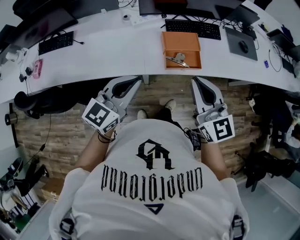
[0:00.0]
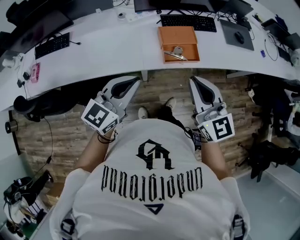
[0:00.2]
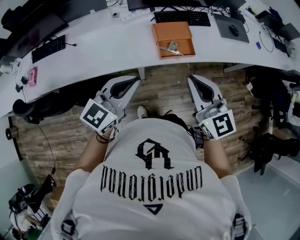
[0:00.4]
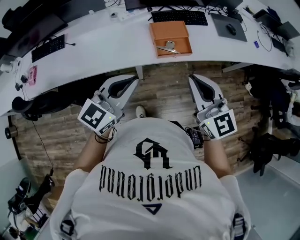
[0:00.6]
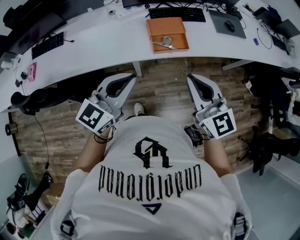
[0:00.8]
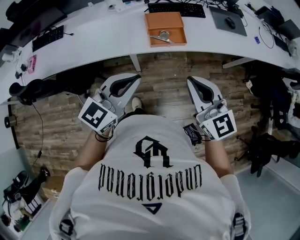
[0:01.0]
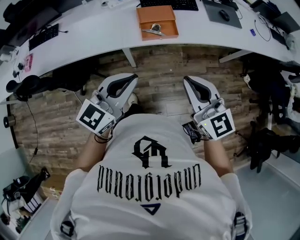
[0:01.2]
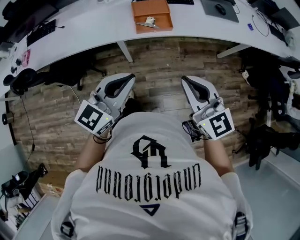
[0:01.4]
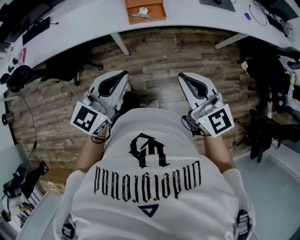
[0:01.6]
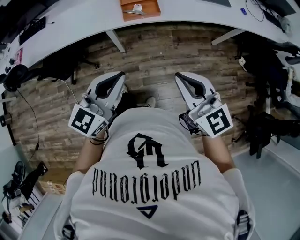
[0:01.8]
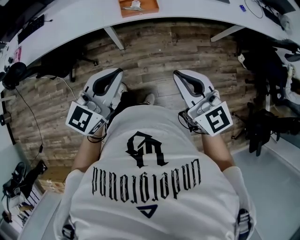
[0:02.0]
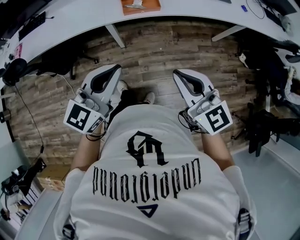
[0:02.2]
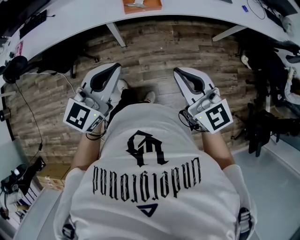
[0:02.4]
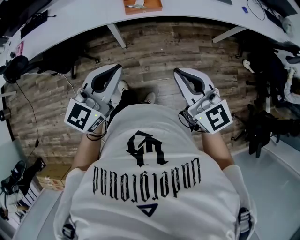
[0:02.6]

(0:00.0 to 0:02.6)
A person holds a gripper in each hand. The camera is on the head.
0:00.0 - 0:01.2: The two grippers go roughly 20 cm backward and to the right.
0:01.2 - 0:02.6: The right gripper goes some 15 cm backward and to the right. Meanwhile the left gripper travels backward by roughly 10 cm.

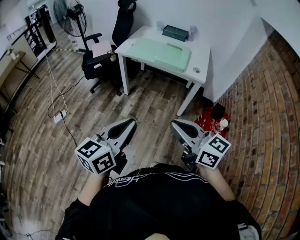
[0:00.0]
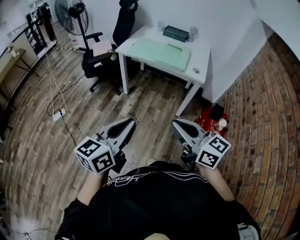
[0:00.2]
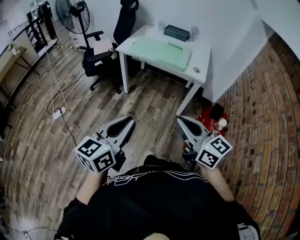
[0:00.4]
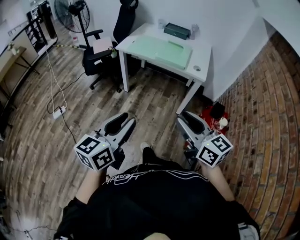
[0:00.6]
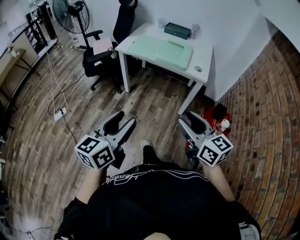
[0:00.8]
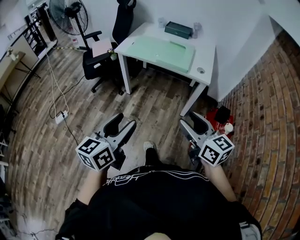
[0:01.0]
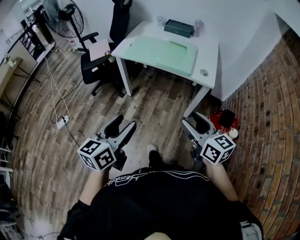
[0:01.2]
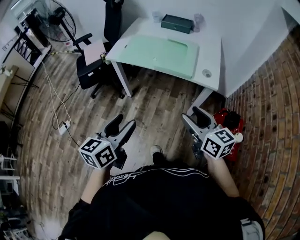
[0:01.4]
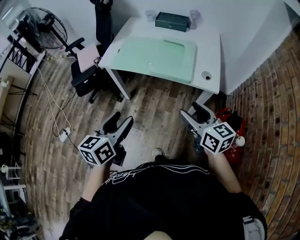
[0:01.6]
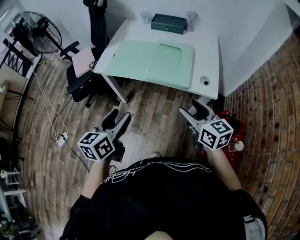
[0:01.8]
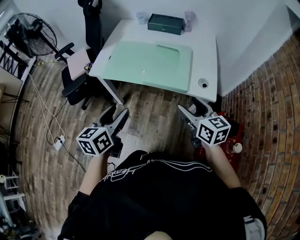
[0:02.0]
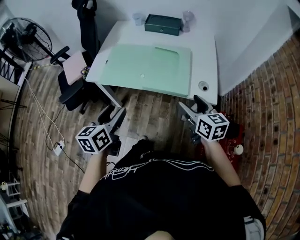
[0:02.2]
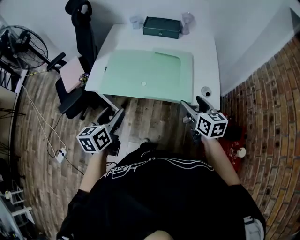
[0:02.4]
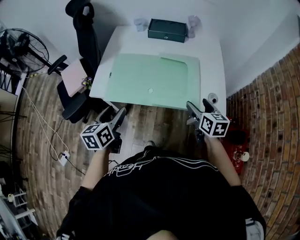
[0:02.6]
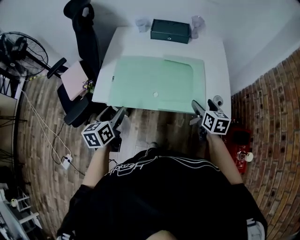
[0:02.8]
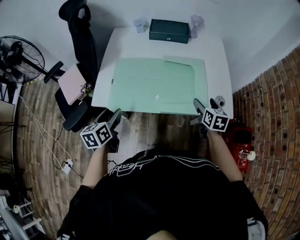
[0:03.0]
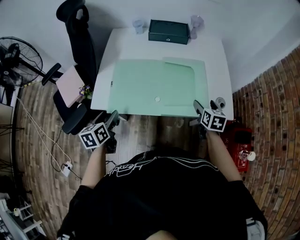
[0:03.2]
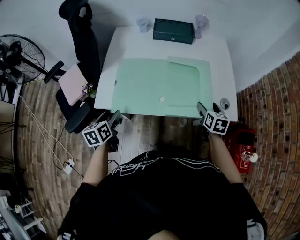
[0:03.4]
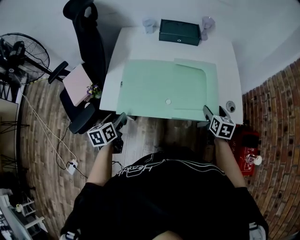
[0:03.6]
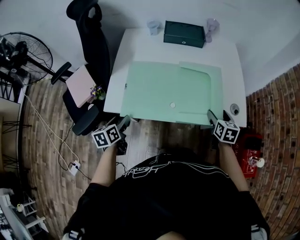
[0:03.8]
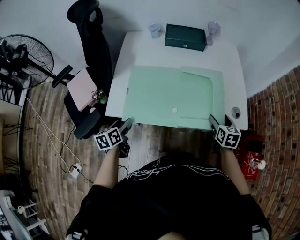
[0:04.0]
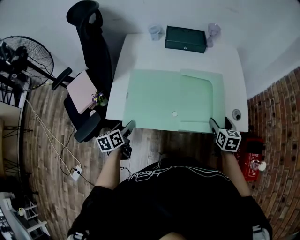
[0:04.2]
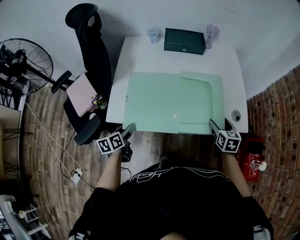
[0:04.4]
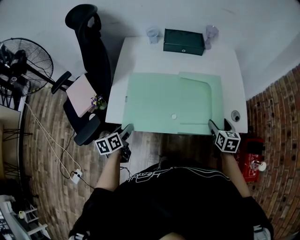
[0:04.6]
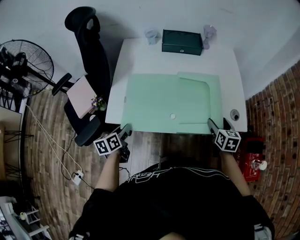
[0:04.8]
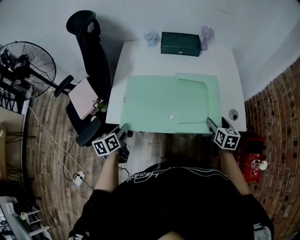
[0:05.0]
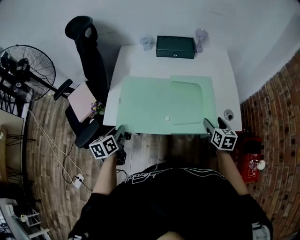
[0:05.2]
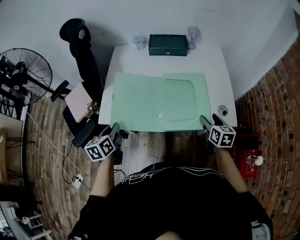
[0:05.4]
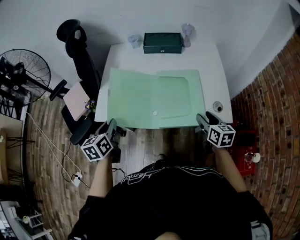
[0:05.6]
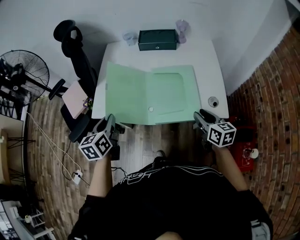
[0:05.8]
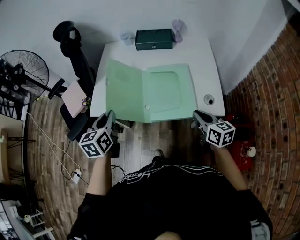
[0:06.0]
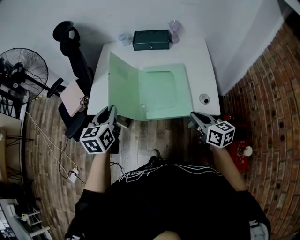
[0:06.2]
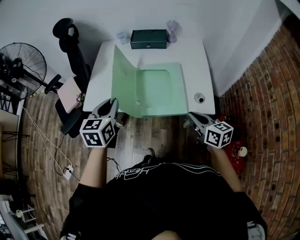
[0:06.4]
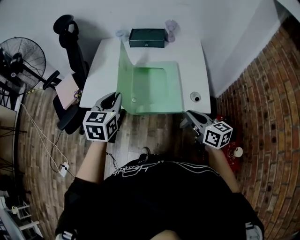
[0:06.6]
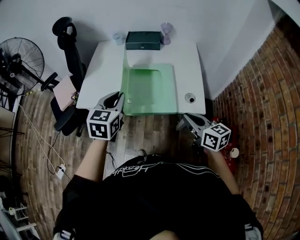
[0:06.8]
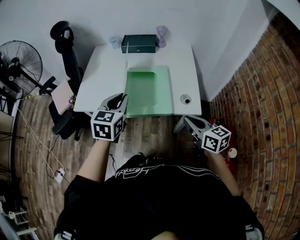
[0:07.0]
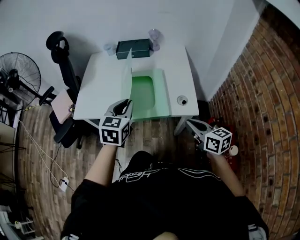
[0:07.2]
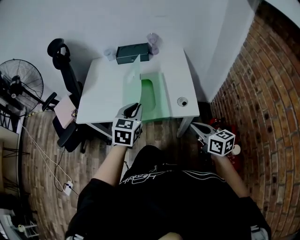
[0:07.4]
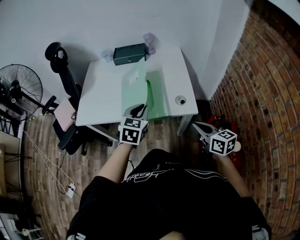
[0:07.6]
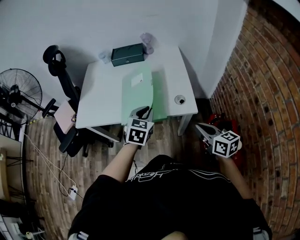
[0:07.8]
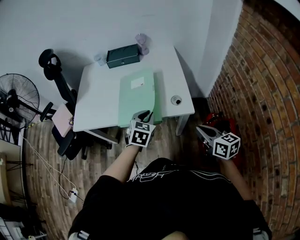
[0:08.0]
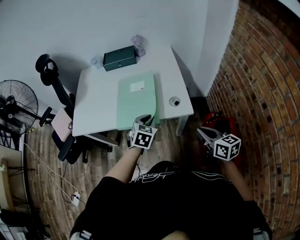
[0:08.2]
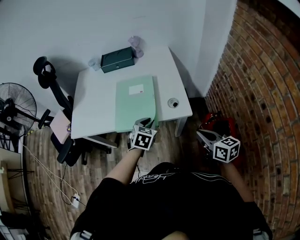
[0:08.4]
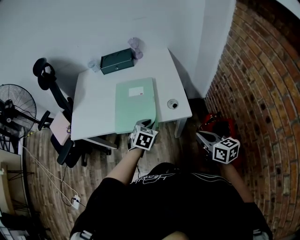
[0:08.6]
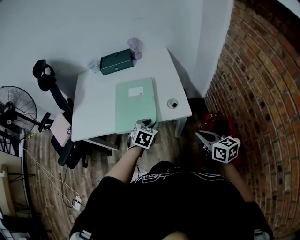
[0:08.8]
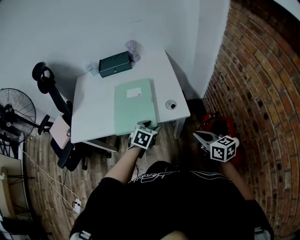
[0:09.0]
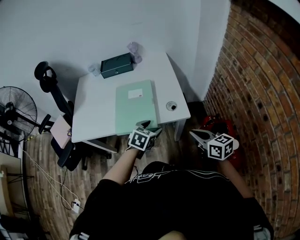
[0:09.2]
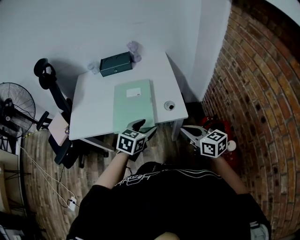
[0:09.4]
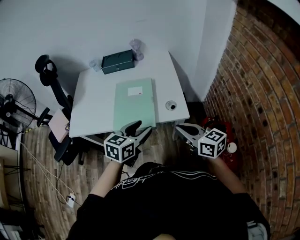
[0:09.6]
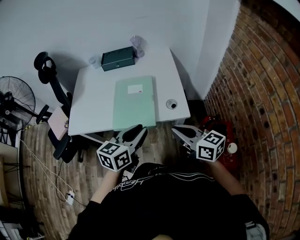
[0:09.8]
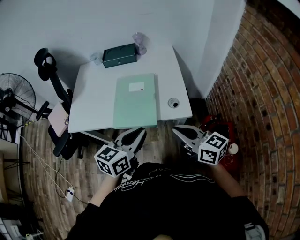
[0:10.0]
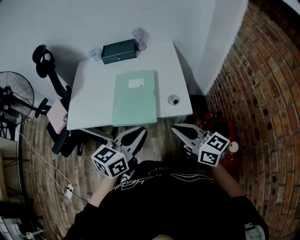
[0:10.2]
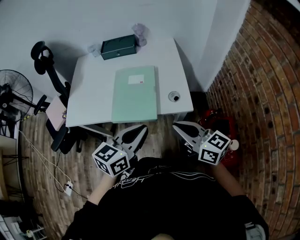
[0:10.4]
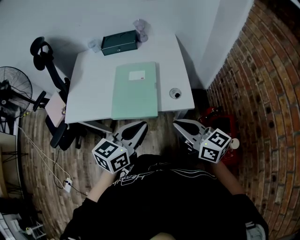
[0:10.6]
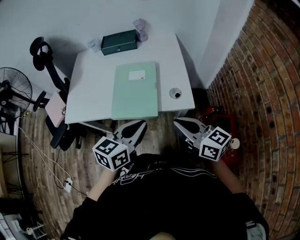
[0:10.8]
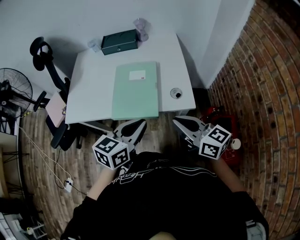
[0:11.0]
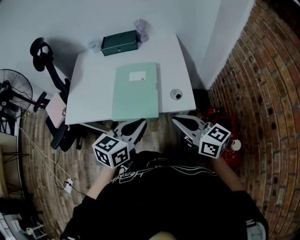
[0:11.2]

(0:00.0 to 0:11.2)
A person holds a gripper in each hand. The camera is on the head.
0:00.0 - 0:01.6: The two grippers go about 30 cm forward. The left gripper opens its fingers; the right gripper changes its angle by some 20 degrees, and opens its fingers.
0:01.6 - 0:03.2: The right gripper is displaced forward and downward by roughly 30 cm, and rotates approximately 40 degrees, while the left gripper travels forward, to the left and downward by roughly 40 cm.
0:03.2 - 0:04.8: The left gripper goes approximately 5 cm downward, and closes up.
0:04.8 - 0:06.4: The left gripper is displaced upward and to the right by about 30 cm, and rotates some 40 degrees. The right gripper heads upward and backward, covering some 15 cm, swivels roughly 30 degrees, and closes up.
0:06.4 - 0:08.0: The left gripper goes some 25 cm to the right and downward, and swivels roughly 30 degrees. Meanwhile the right gripper moves to the right and backward, approximately 15 cm.
0:08.0 - 0:09.6: The right gripper heads to the left, covering approximately 5 cm, while the left gripper is displaced upward and backward by approximately 5 cm, turns by some 30 degrees, and opens up.
0:09.6 - 0:11.2: The left gripper closes up.

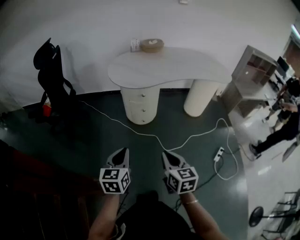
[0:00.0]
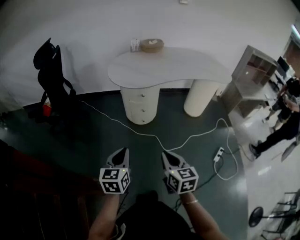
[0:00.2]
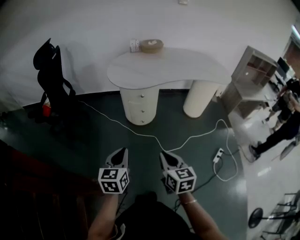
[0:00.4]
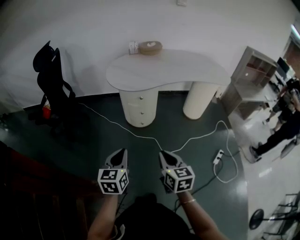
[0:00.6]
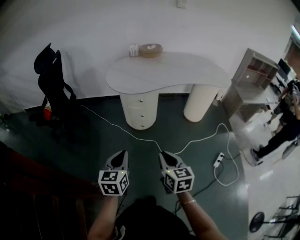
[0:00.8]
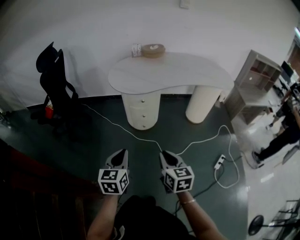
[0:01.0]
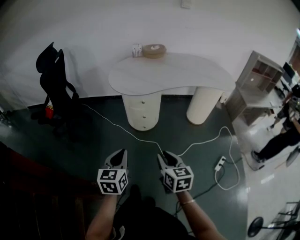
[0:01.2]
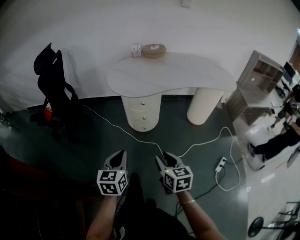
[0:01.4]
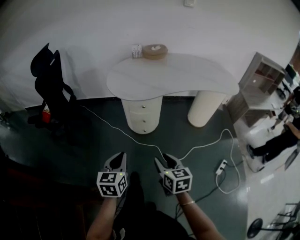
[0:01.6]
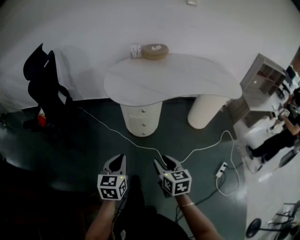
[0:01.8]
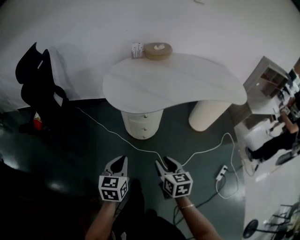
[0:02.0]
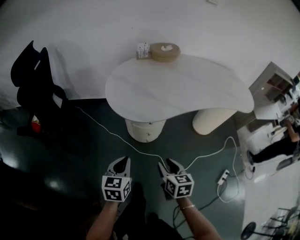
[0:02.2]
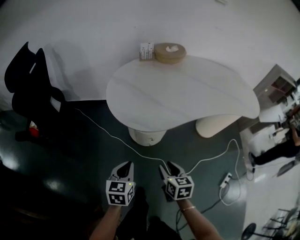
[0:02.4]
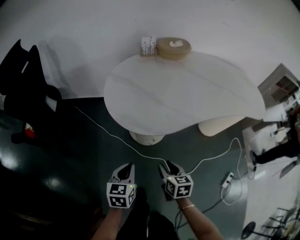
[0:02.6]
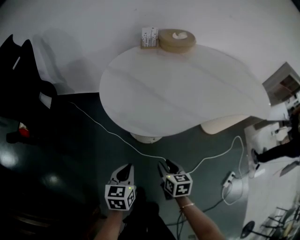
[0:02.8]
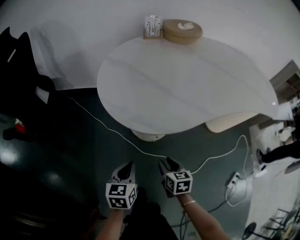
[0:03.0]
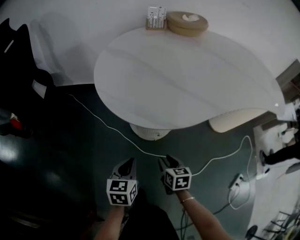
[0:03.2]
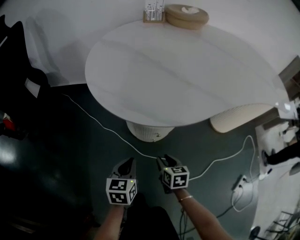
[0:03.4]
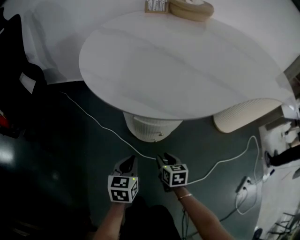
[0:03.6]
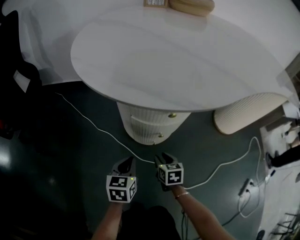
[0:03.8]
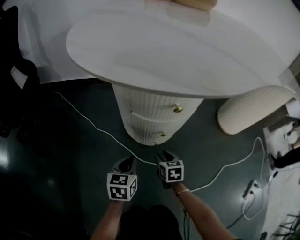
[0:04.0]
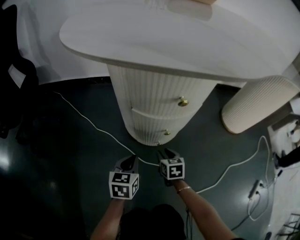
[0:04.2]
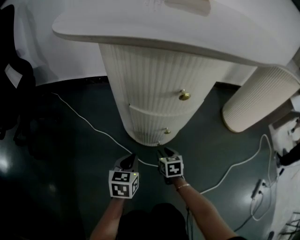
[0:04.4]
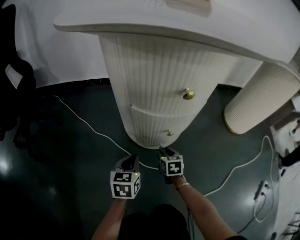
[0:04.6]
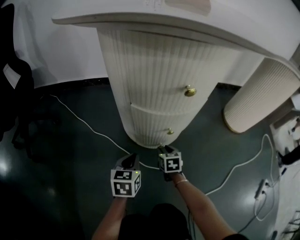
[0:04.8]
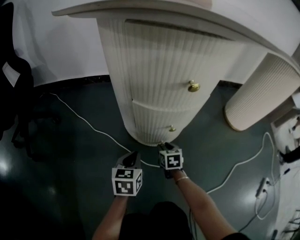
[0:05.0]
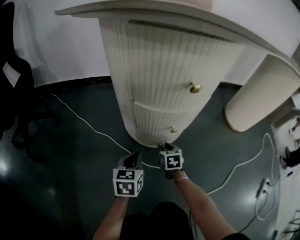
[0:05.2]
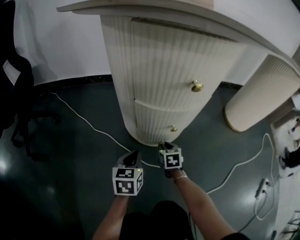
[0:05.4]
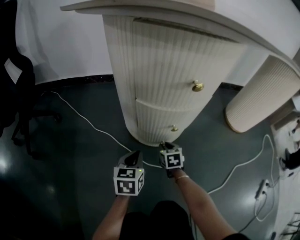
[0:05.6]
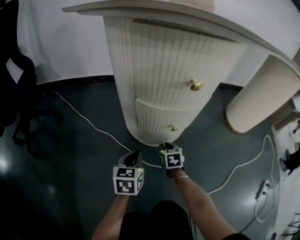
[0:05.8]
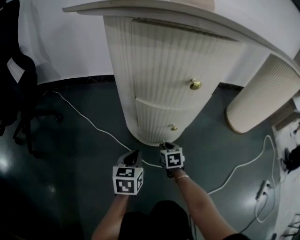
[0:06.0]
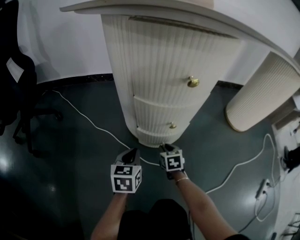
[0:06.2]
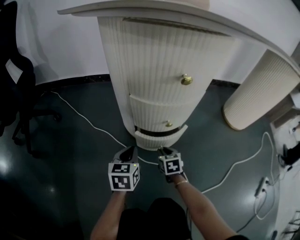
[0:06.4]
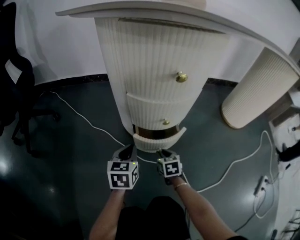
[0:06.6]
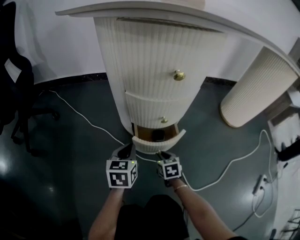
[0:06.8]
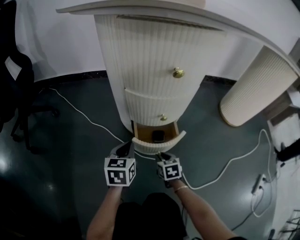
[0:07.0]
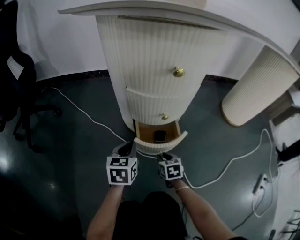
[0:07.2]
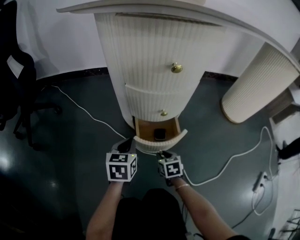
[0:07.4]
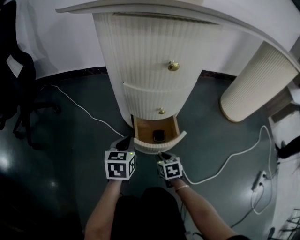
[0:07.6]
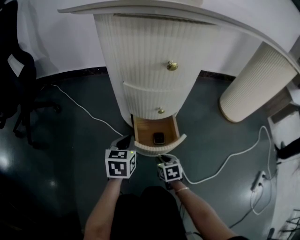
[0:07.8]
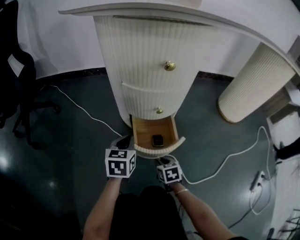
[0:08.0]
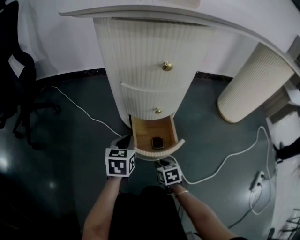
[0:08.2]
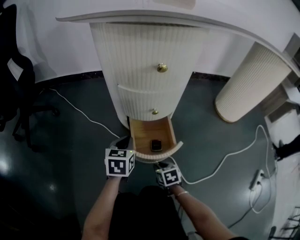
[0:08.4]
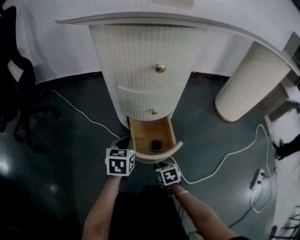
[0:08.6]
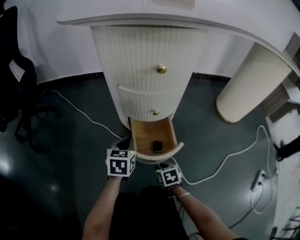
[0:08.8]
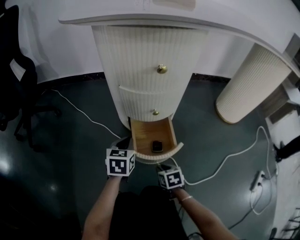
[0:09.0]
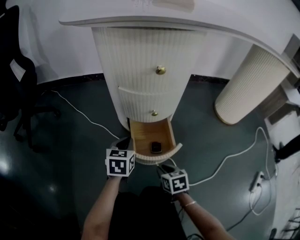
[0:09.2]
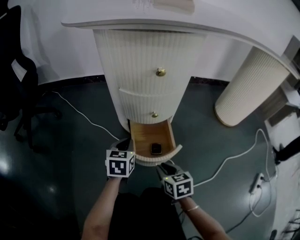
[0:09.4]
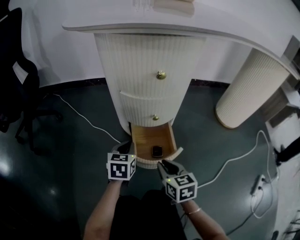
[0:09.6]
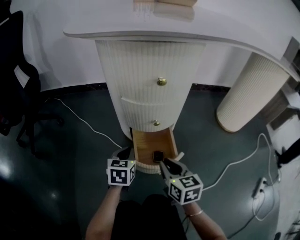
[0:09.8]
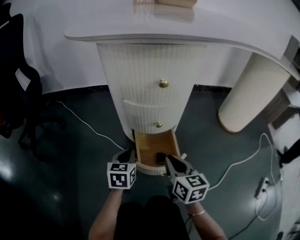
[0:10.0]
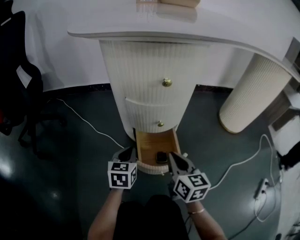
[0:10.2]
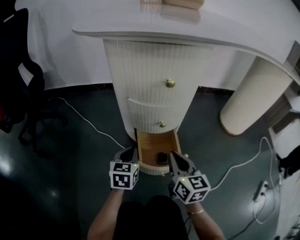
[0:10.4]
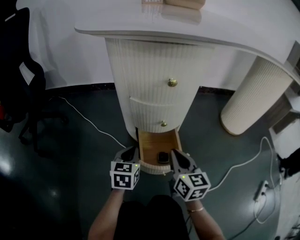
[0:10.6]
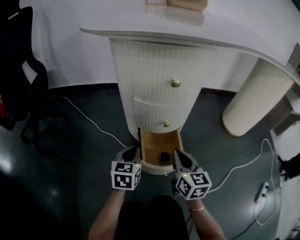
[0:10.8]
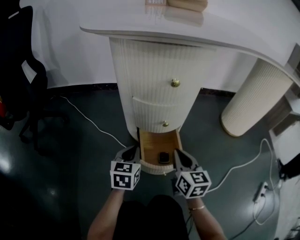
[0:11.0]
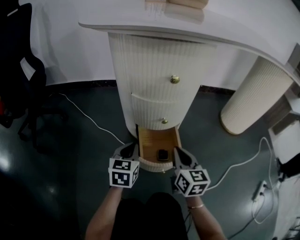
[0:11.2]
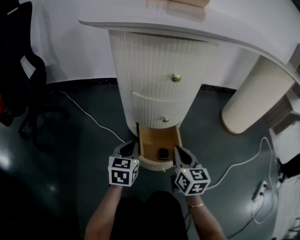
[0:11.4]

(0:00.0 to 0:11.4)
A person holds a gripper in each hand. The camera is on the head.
0:00.0 - 0:01.4: The grippers both shift forward by approximately 5 cm. The right gripper opens up.
0:01.4 - 0:02.8: Both grippers move forward and downward, roughly 35 cm.
0:02.8 - 0:04.2: Both grippers move downward, some 40 cm.
0:04.2 - 0:05.6: The right gripper heads downward, covering roughly 5 cm, while the left gripper ends up roughly 5 cm from where it was.
0:05.6 - 0:07.2: The right gripper is displaced backward by approximately 10 cm.
0:07.2 - 0:08.6: The right gripper moves backward, about 10 cm.
0:08.6 - 0:10.0: The right gripper heads upward, covering roughly 20 cm, and angles its fingers upward, by approximately 30 degrees.
0:10.0 - 0:11.4: The grippers move only a little.
